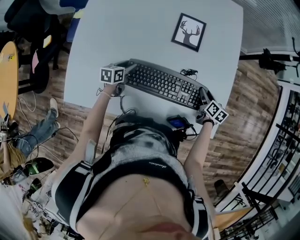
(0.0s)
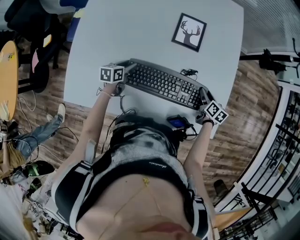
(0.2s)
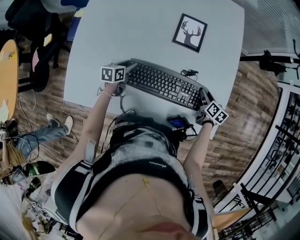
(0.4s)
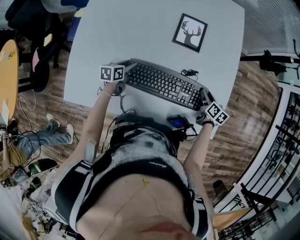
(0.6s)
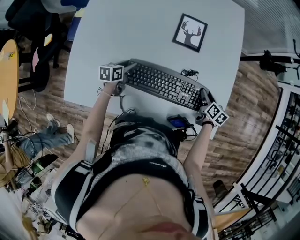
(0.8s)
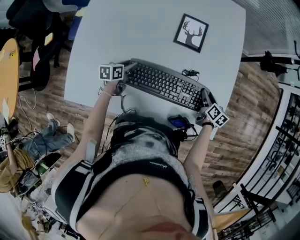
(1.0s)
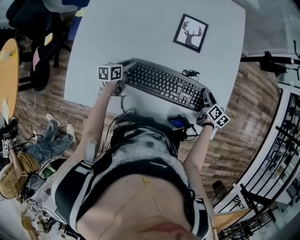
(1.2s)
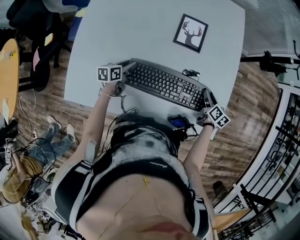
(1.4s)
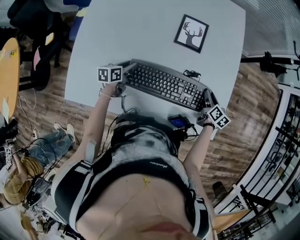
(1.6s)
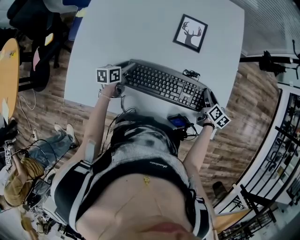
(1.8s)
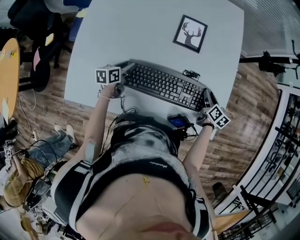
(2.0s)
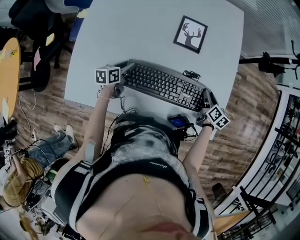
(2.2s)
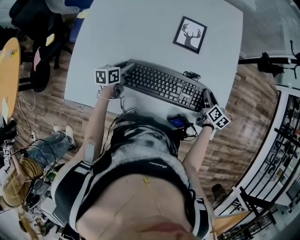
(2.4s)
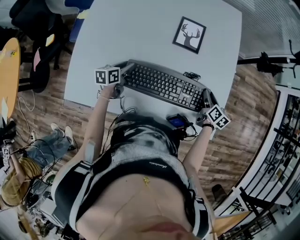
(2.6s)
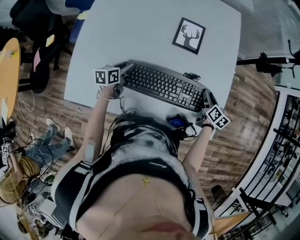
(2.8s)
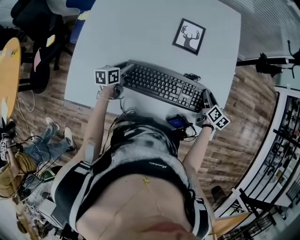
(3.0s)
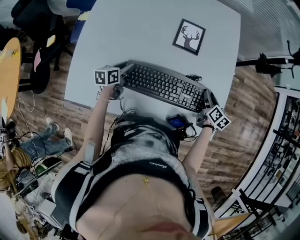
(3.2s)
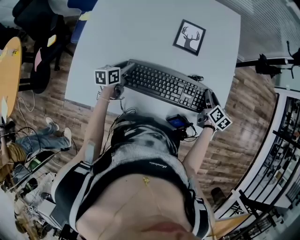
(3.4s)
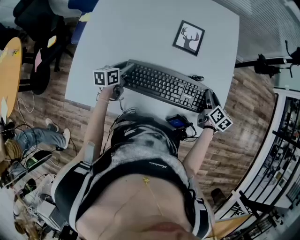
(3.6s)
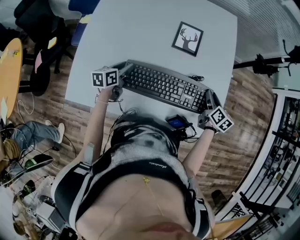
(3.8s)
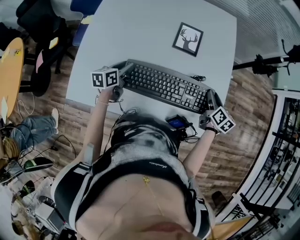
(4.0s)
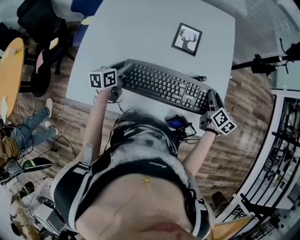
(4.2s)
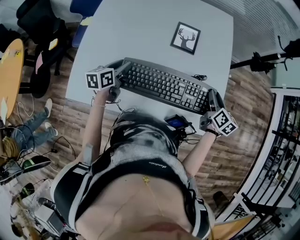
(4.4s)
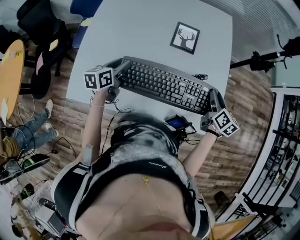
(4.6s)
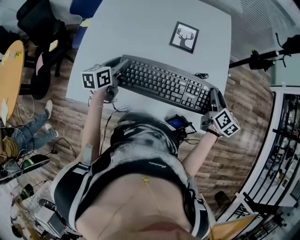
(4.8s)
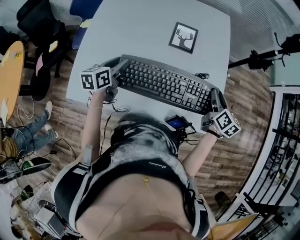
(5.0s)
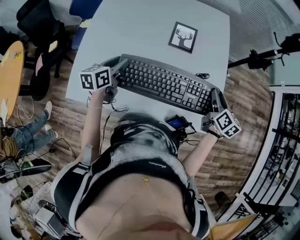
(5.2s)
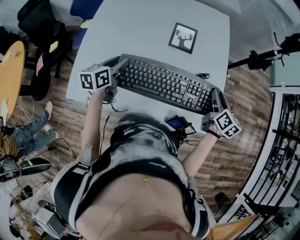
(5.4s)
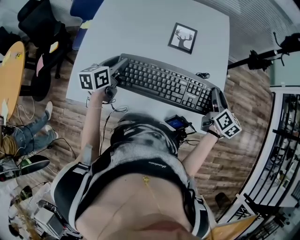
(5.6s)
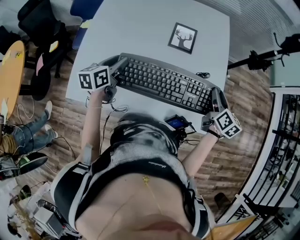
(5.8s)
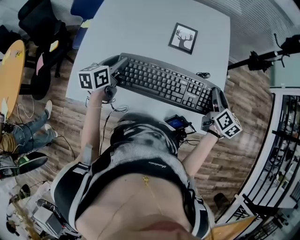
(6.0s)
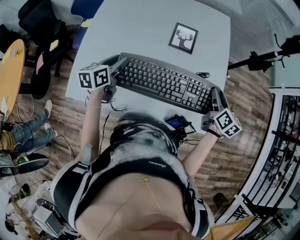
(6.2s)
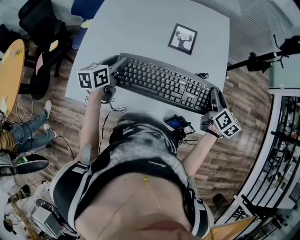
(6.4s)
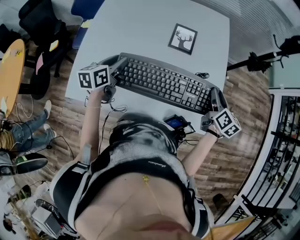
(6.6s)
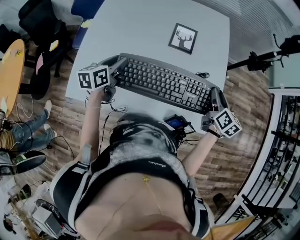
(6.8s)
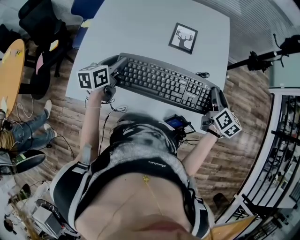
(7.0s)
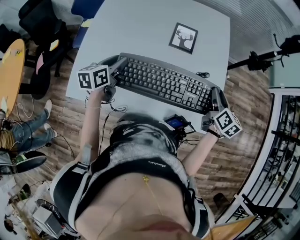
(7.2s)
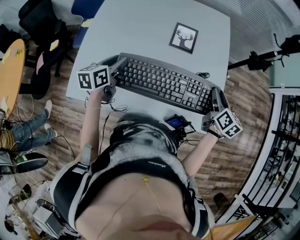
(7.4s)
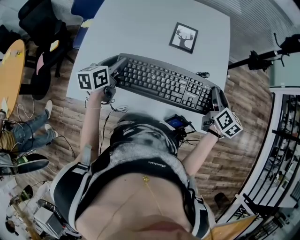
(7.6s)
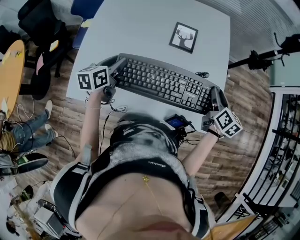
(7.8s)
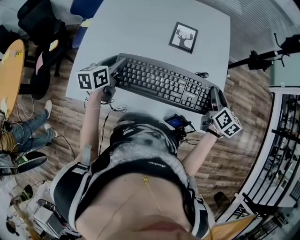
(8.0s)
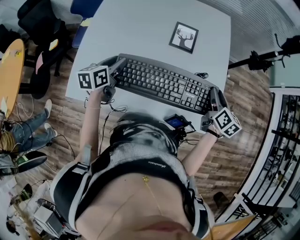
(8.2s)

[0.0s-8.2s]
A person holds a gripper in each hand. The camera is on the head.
0.0s to 1.6s: There are only small adjustments of the grippers.
1.6s to 3.2s: The left gripper is displaced upward by roughly 5 cm.
3.2s to 5.0s: Both grippers move upward, some 15 cm.
5.0s to 6.6s: The grippers stay close to where they were, moving slightly.
6.6s to 8.2s: Both grippers stay put.

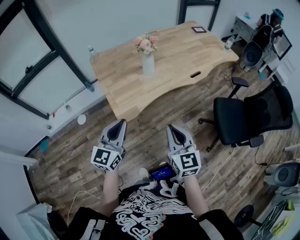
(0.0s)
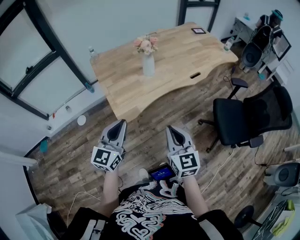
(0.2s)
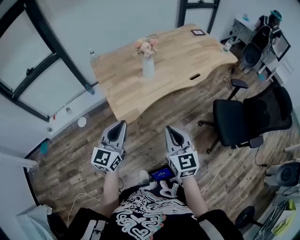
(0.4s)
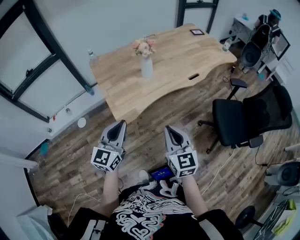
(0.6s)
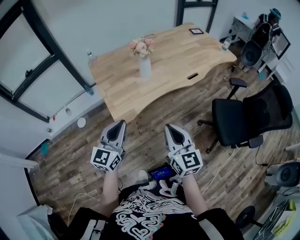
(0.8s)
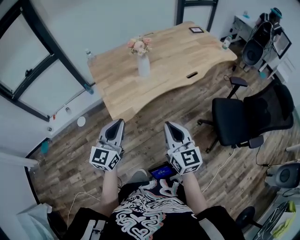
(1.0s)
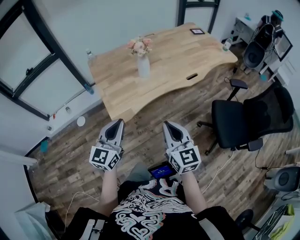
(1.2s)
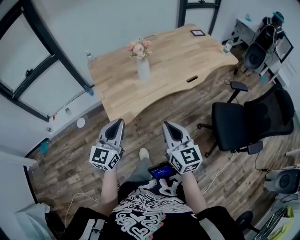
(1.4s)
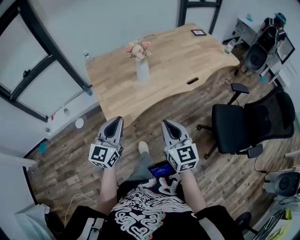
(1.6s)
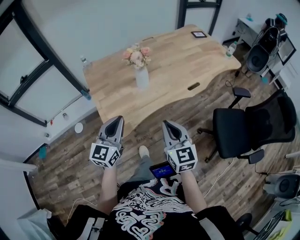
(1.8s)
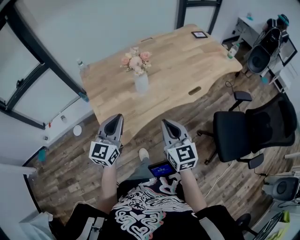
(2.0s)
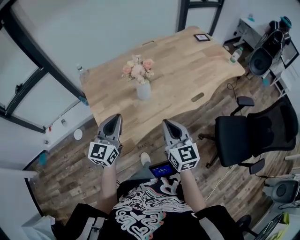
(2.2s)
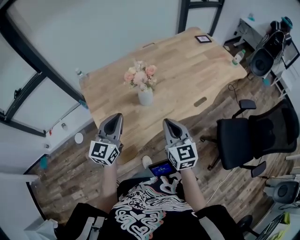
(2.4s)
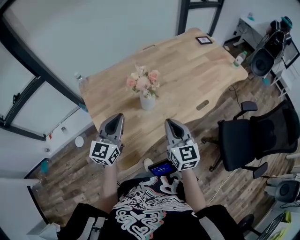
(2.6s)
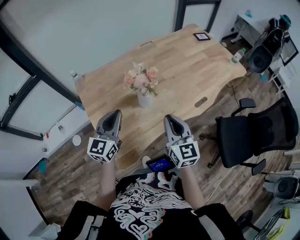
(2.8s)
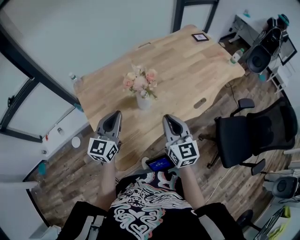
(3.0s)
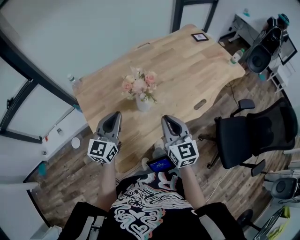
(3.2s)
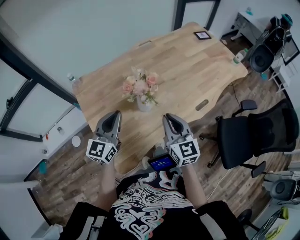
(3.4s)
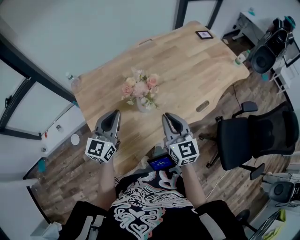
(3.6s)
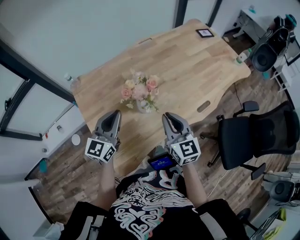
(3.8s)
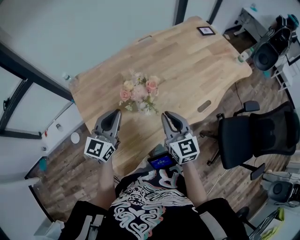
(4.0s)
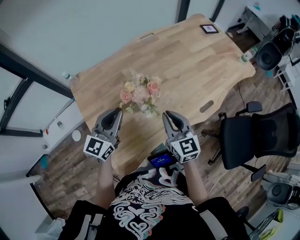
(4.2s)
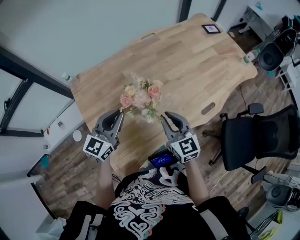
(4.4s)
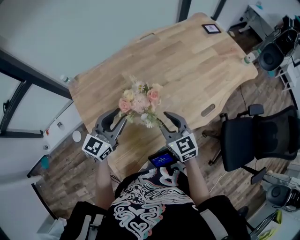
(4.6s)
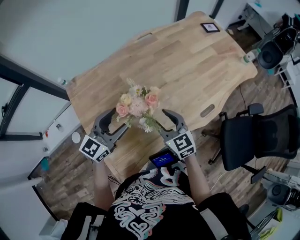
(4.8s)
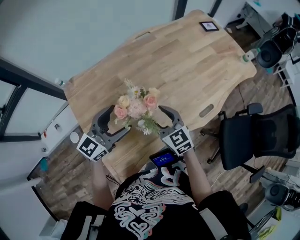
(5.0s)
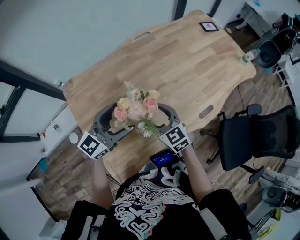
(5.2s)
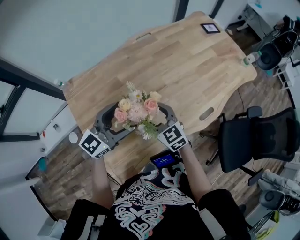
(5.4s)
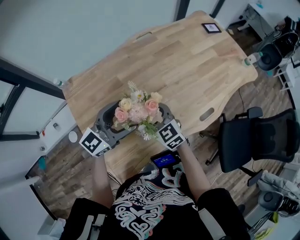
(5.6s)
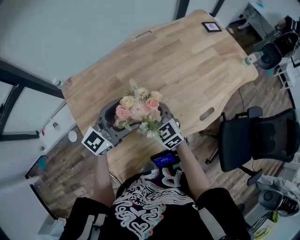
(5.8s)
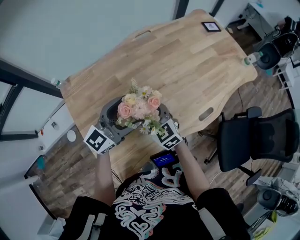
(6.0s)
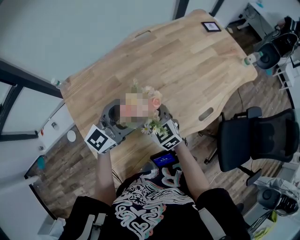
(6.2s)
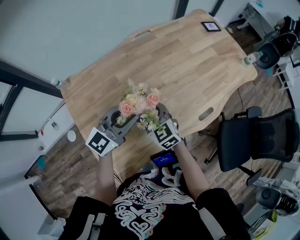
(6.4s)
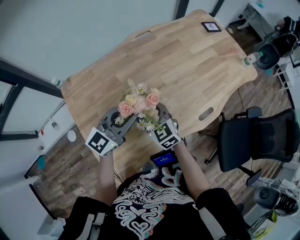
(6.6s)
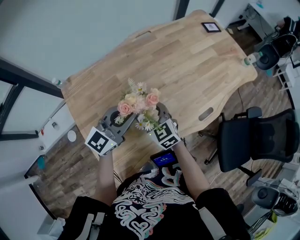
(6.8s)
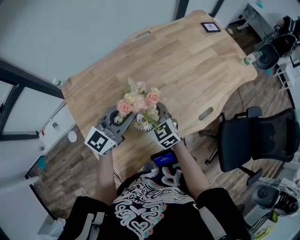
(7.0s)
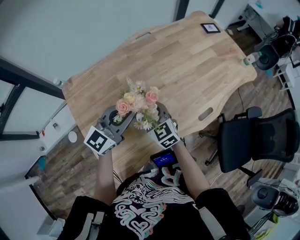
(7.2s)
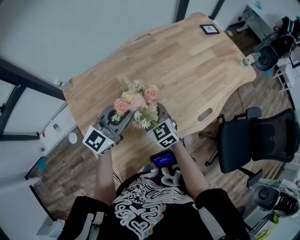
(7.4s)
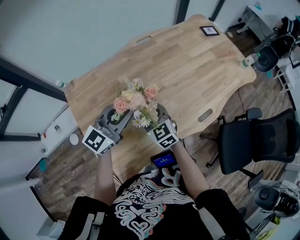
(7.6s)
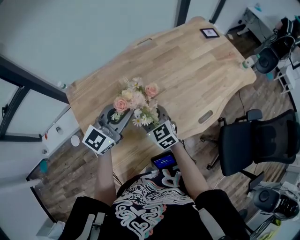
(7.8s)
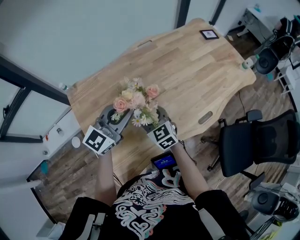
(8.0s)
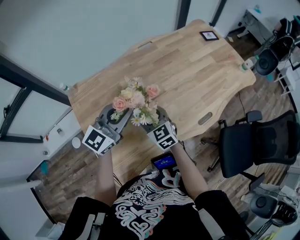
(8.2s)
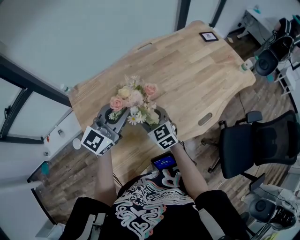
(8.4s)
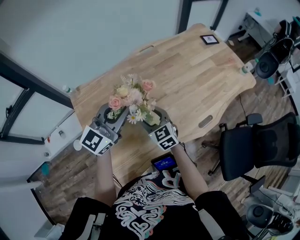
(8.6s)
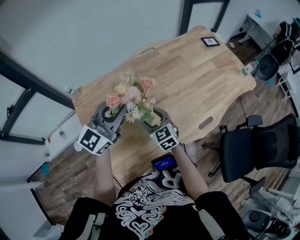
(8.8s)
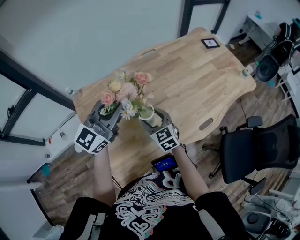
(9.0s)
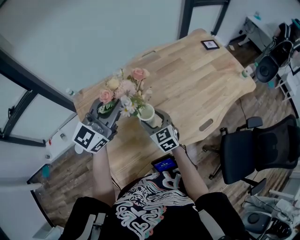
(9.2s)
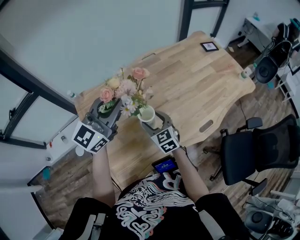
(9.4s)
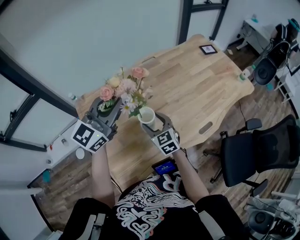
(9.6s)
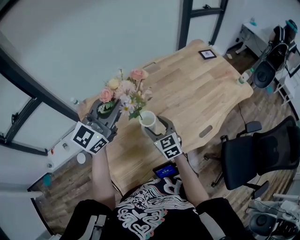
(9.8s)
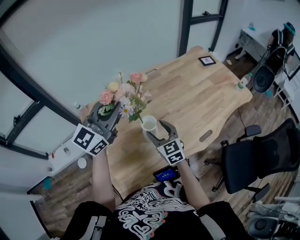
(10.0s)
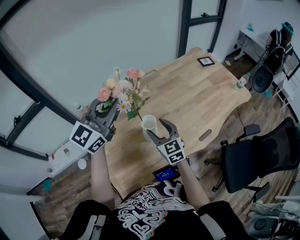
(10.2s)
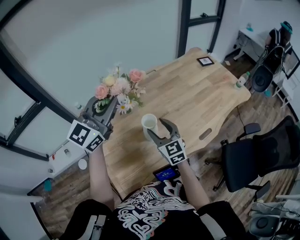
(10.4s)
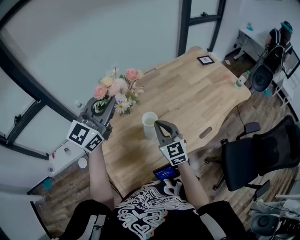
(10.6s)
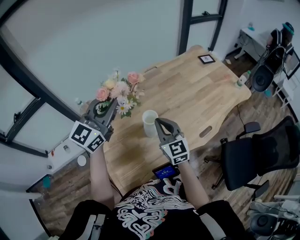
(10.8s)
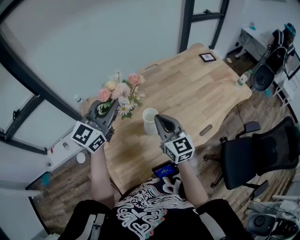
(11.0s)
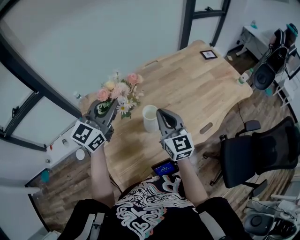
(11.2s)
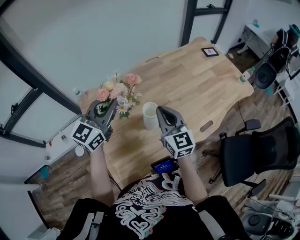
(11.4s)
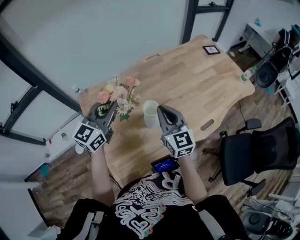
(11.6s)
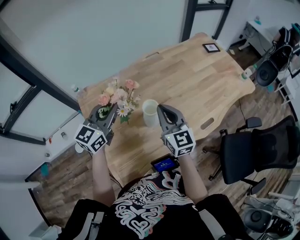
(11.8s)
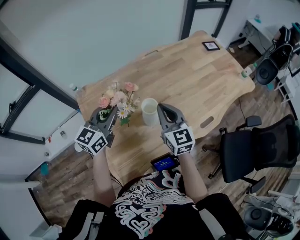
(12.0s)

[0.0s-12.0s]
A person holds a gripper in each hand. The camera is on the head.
0.0s to 1.6s: The two grippers go about 10 cm forward.
1.6s to 3.0s: Both grippers move forward, about 30 cm.
3.0s to 4.4s: The left gripper goes roughly 10 cm forward. Meanwhile the right gripper heads forward and downward, covering some 15 cm.
4.4s to 6.0s: The right gripper travels to the left and forward by some 10 cm, turns by approximately 20 degrees, and opens its fingers, while the left gripper goes about 10 cm forward and to the right, and opens.
6.0s to 7.6s: The left gripper closes its fingers.
7.6s to 9.0s: The left gripper is displaced upward by some 10 cm.
9.0s to 10.4s: The two grippers go roughly 10 cm upward.
10.4s to 12.0s: The right gripper closes its fingers. Meanwhile the left gripper shifts about 15 cm downward, and turns by some 20 degrees.

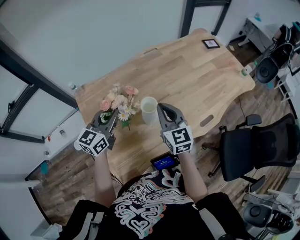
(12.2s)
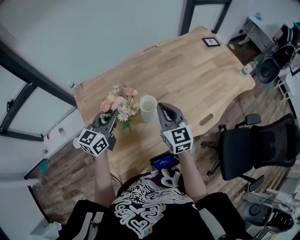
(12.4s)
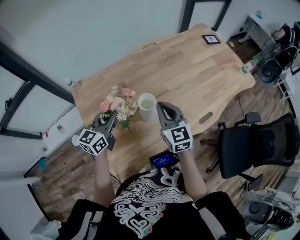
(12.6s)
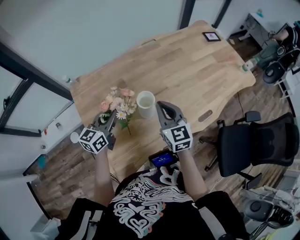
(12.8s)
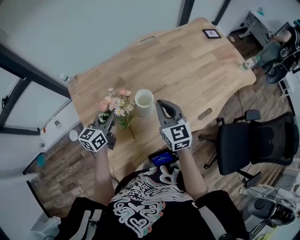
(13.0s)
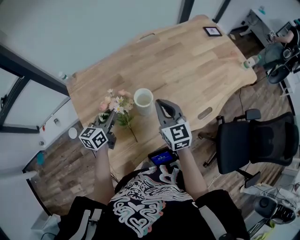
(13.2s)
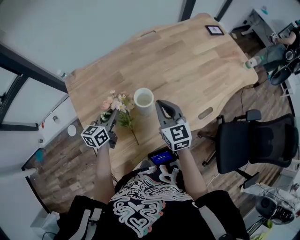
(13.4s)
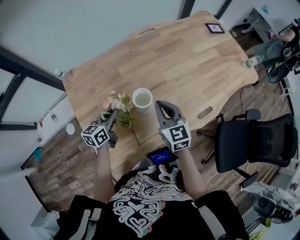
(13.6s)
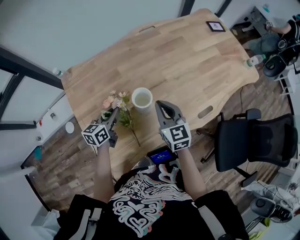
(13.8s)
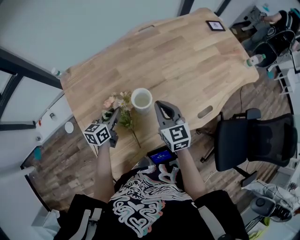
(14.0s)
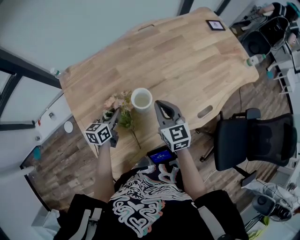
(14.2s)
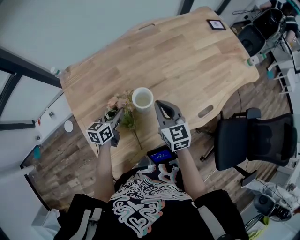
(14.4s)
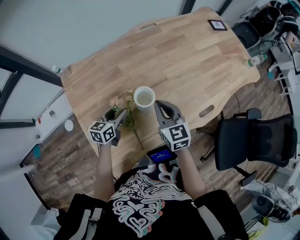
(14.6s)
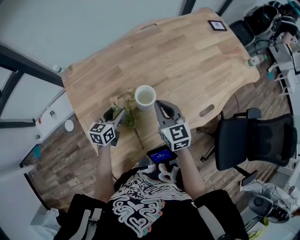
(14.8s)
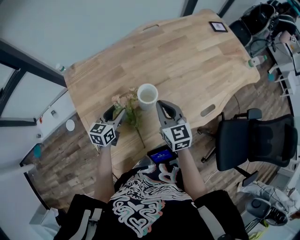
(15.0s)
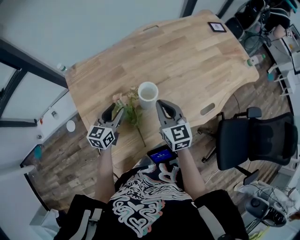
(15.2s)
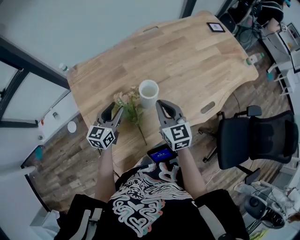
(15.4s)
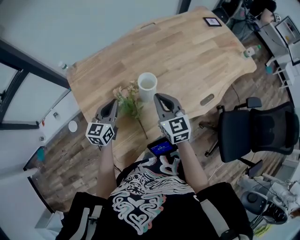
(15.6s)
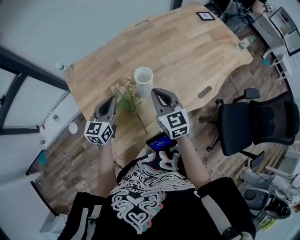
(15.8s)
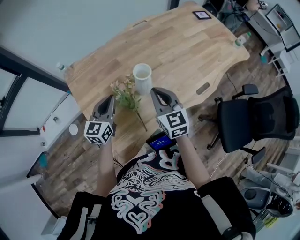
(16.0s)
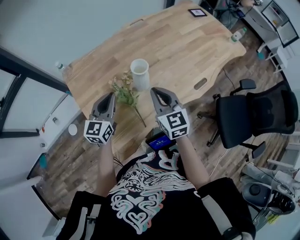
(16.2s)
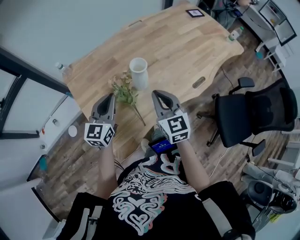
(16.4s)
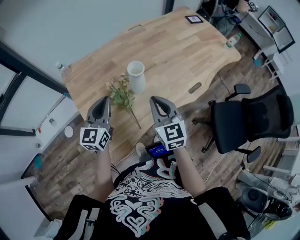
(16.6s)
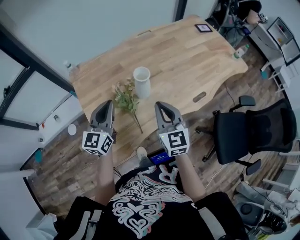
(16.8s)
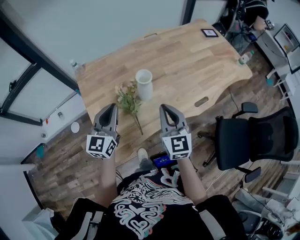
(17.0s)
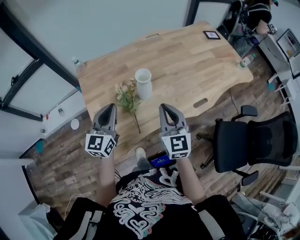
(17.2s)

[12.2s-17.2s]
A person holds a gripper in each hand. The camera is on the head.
12.2s to 13.8s: The left gripper heads downward, covering roughly 20 cm, and changes its angle by roughly 30 degrees; the right gripper is displaced downward by some 10 cm.
13.8s to 15.6s: The right gripper changes place by some 5 cm. Meanwhile the left gripper heads upward, covering approximately 5 cm, swivels about 20 degrees, and opens, then closes once more.
15.6s to 17.2s: The left gripper goes roughly 15 cm upward and backward. Meanwhile the right gripper moves backward, upward and to the right, roughly 15 cm.
